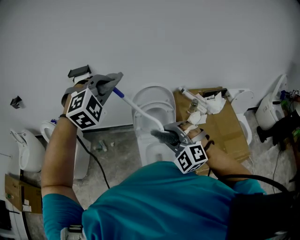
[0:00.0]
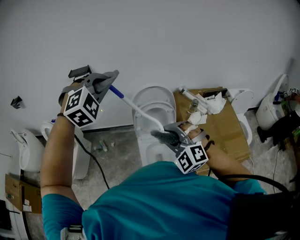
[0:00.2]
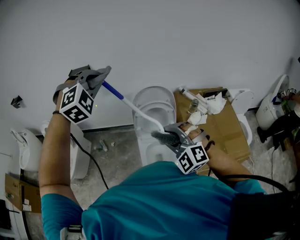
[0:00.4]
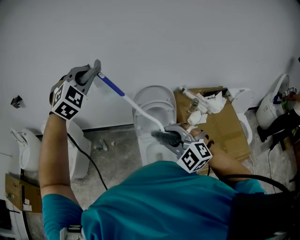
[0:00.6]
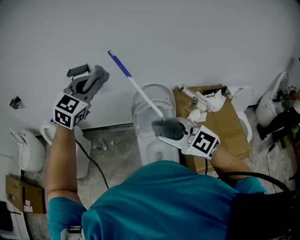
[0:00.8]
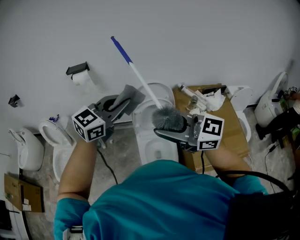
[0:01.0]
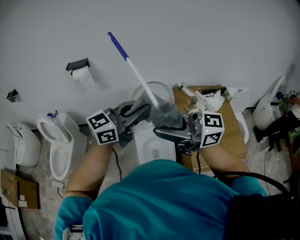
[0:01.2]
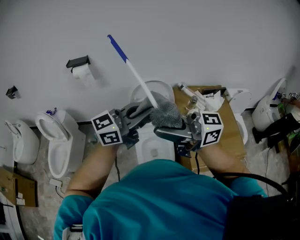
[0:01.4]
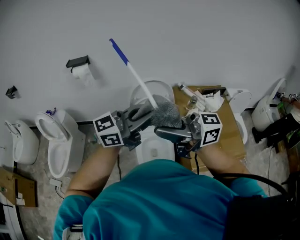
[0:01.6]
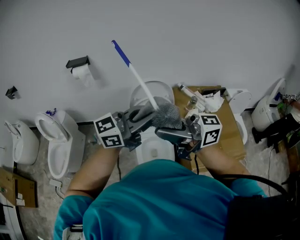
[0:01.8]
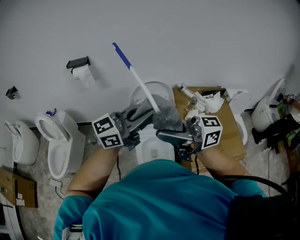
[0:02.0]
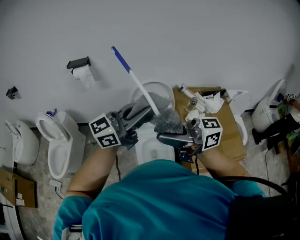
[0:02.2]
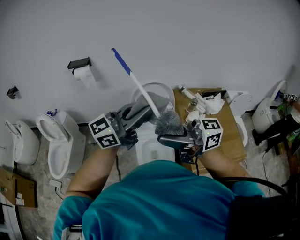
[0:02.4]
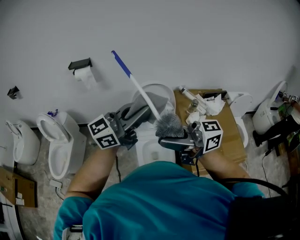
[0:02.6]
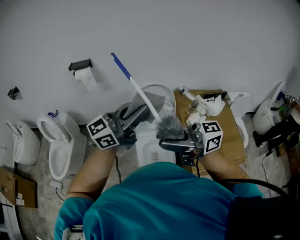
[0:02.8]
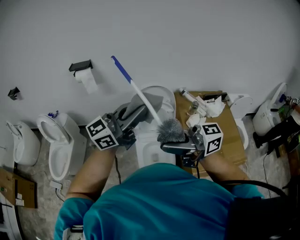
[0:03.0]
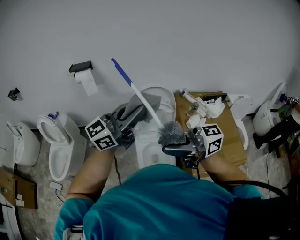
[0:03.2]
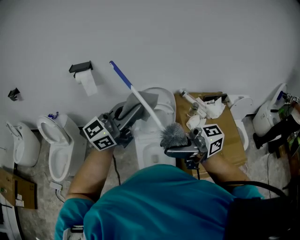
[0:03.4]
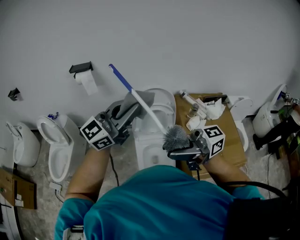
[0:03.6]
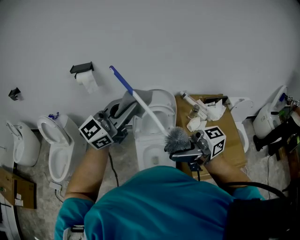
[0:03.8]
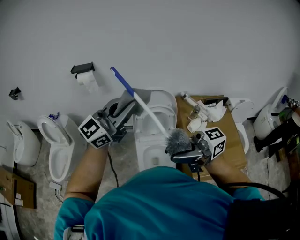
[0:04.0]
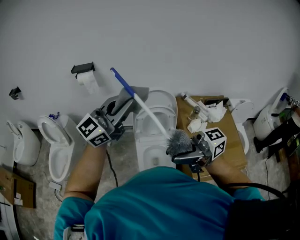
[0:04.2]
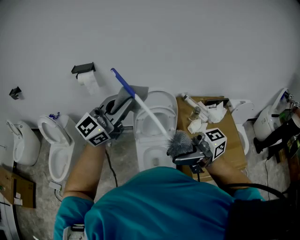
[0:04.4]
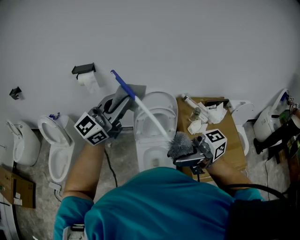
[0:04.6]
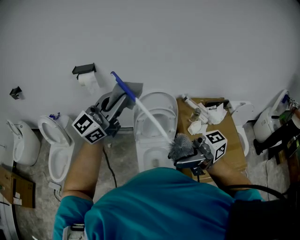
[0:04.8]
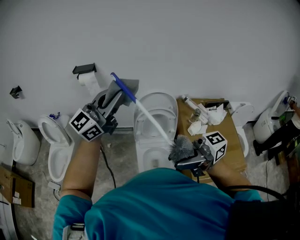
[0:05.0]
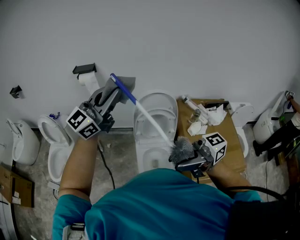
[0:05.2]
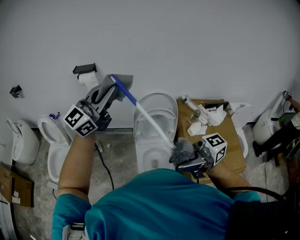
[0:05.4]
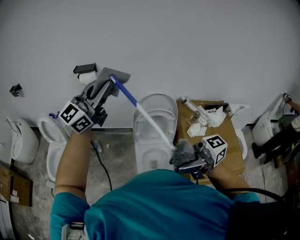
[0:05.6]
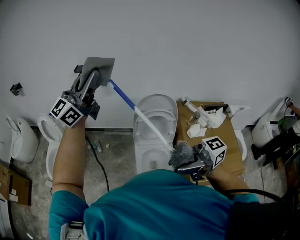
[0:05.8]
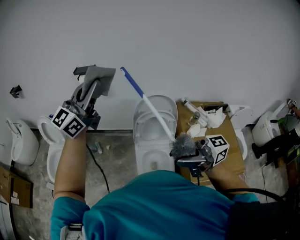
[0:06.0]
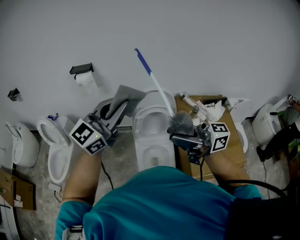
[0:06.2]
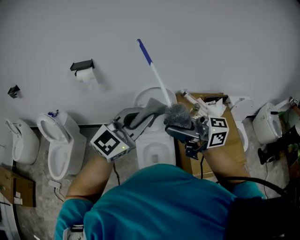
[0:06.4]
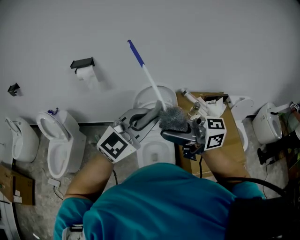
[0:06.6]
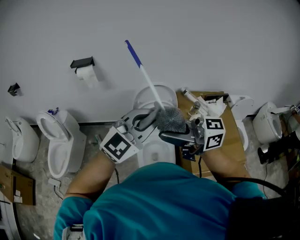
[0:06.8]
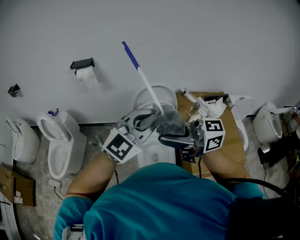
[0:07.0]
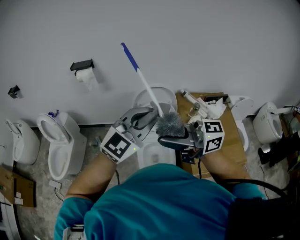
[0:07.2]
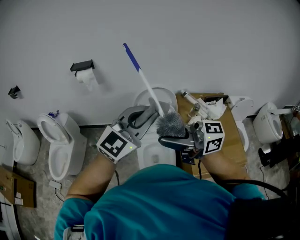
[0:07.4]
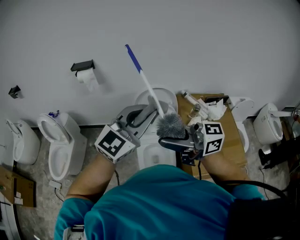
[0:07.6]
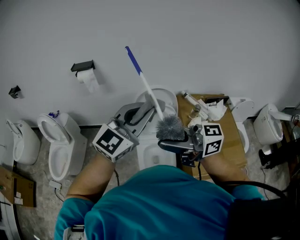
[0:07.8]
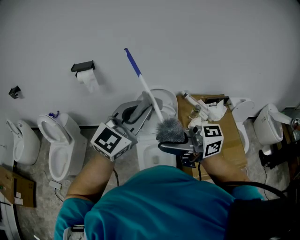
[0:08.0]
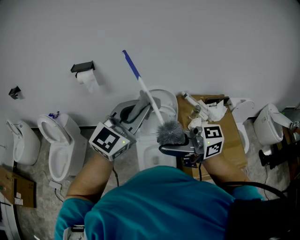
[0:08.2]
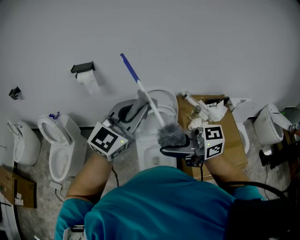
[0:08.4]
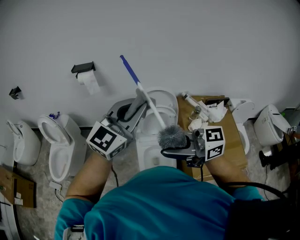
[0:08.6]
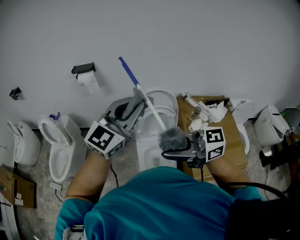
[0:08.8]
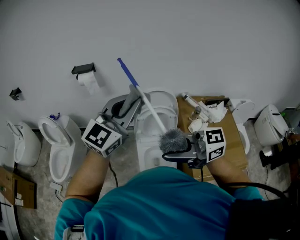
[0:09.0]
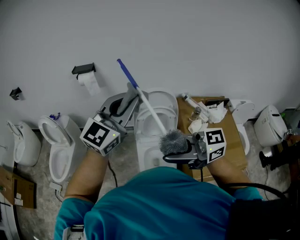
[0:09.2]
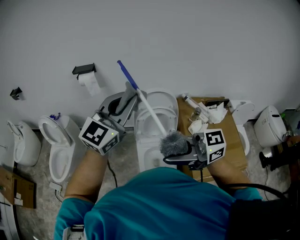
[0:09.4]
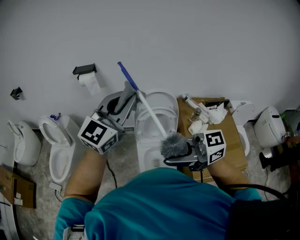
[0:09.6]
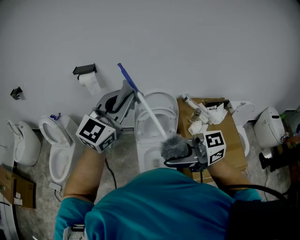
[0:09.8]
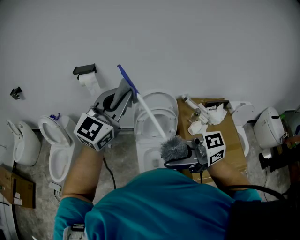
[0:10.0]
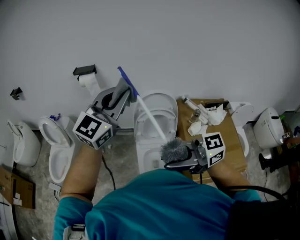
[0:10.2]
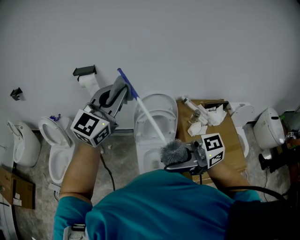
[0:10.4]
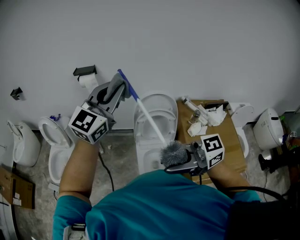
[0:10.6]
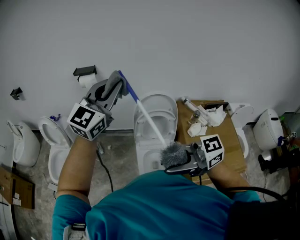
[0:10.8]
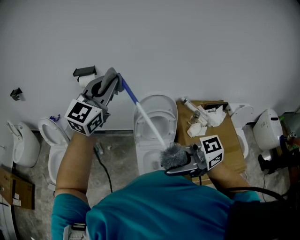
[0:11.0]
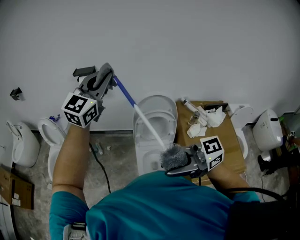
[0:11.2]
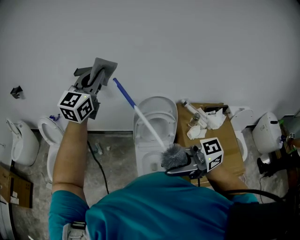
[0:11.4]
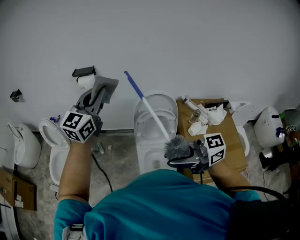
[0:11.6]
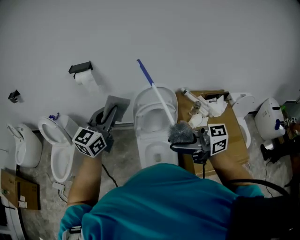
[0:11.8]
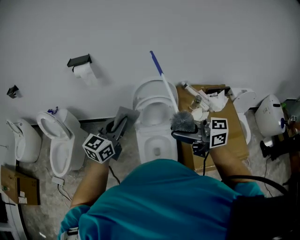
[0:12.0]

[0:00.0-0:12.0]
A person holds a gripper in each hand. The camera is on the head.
0:00.0 to 0:01.6: The left gripper moves approximately 20 cm, and points its fingers about 40 degrees further upward. Meanwhile the right gripper goes some 15 cm upward, and tips its fingers upward by about 40 degrees.
0:01.6 to 0:03.0: The left gripper changes place by some 5 cm.
0:03.0 to 0:04.4: The left gripper ends up about 10 cm from where it was.
0:04.4 to 0:06.0: The left gripper changes place by approximately 15 cm.
0:06.0 to 0:07.6: The left gripper shifts by some 25 cm, and turns by about 20 degrees.
0:07.6 to 0:09.0: The left gripper moves approximately 5 cm.
0:09.0 to 0:10.4: The left gripper ends up roughly 5 cm from where it was.
0:10.4 to 0:12.0: The right gripper shifts by some 10 cm, and changes its angle by roughly 20 degrees, while the left gripper moves downward, approximately 20 cm, and turns by some 30 degrees.

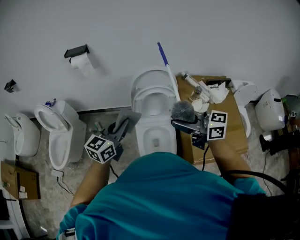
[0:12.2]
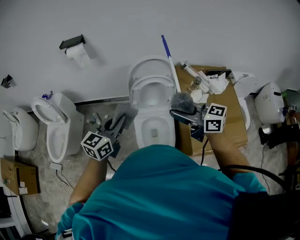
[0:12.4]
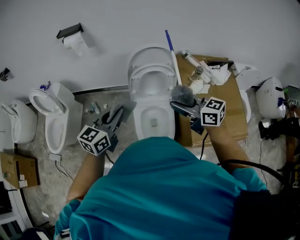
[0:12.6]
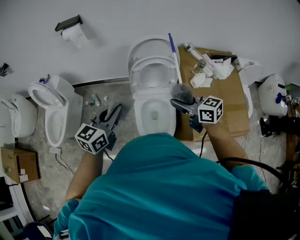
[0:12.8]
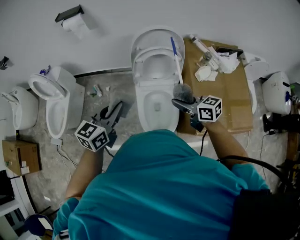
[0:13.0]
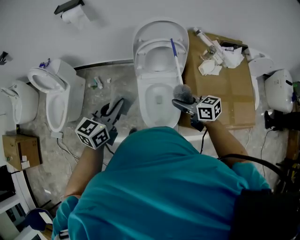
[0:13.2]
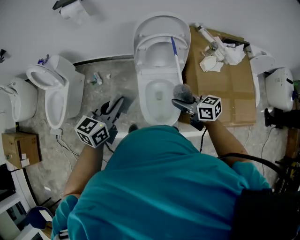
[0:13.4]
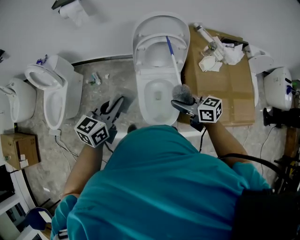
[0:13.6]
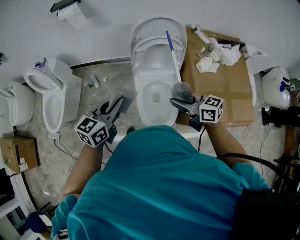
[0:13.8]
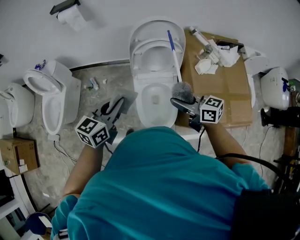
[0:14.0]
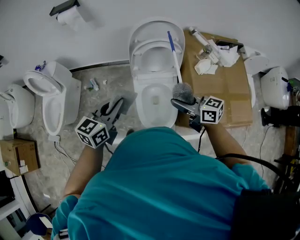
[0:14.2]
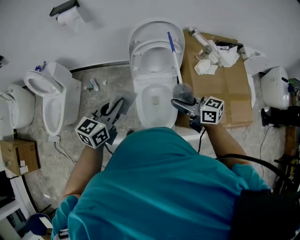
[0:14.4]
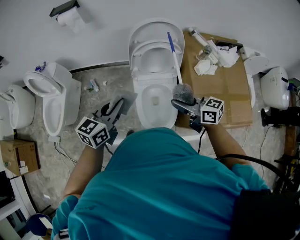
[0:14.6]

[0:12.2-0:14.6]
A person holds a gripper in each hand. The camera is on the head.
0:12.2 to 0:13.4: The right gripper travels downward by roughly 25 cm, and swivels roughly 30 degrees. Meanwhile the left gripper is displaced downward by some 10 cm.
0:13.4 to 0:14.6: The right gripper travels upward by some 5 cm.

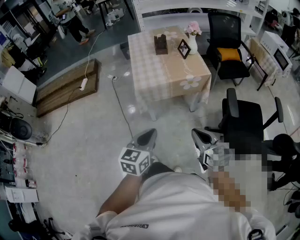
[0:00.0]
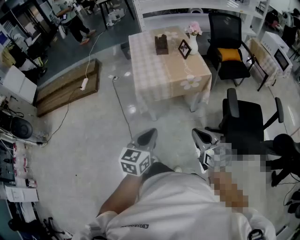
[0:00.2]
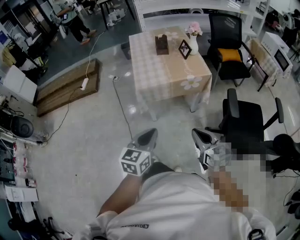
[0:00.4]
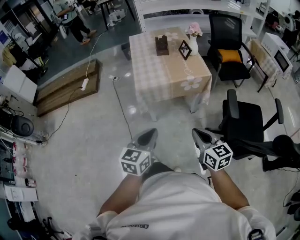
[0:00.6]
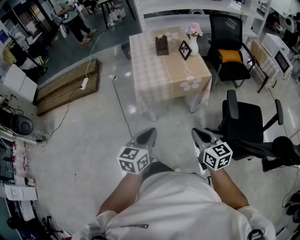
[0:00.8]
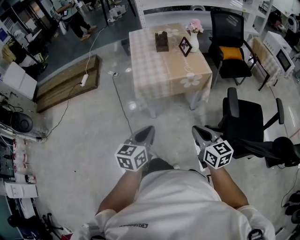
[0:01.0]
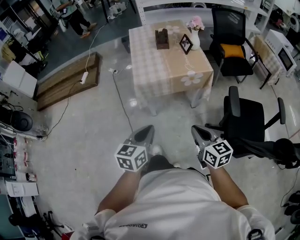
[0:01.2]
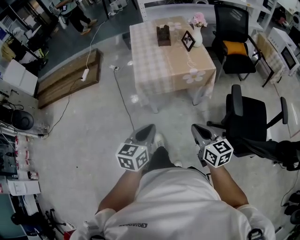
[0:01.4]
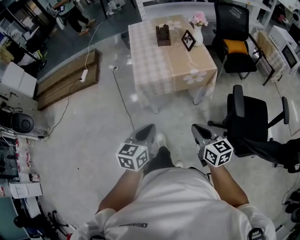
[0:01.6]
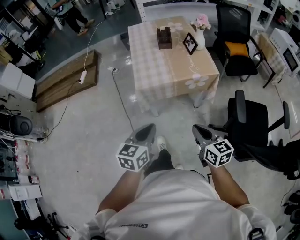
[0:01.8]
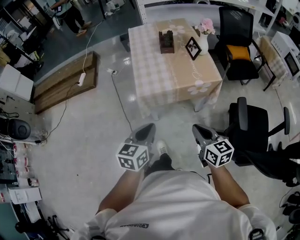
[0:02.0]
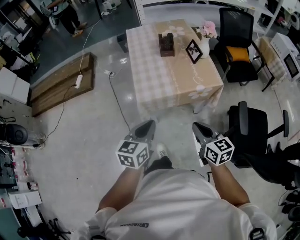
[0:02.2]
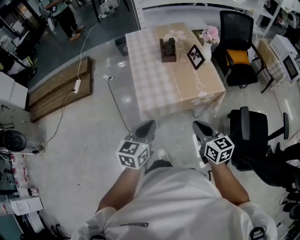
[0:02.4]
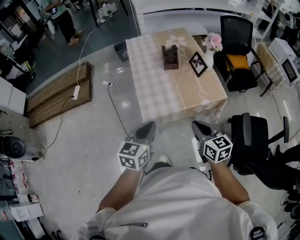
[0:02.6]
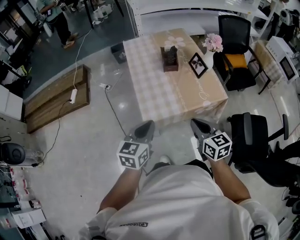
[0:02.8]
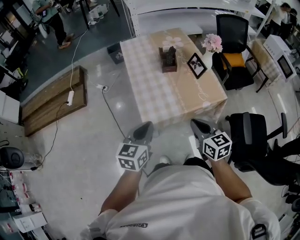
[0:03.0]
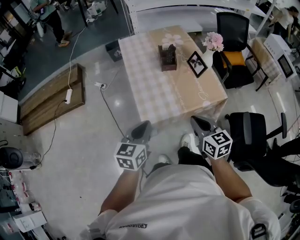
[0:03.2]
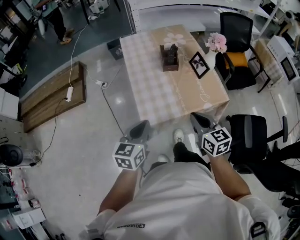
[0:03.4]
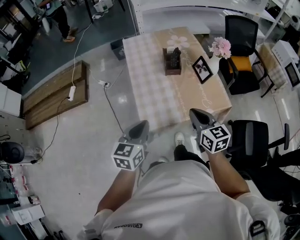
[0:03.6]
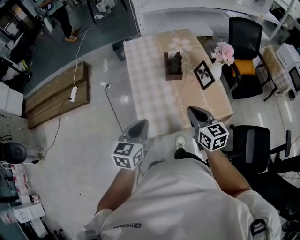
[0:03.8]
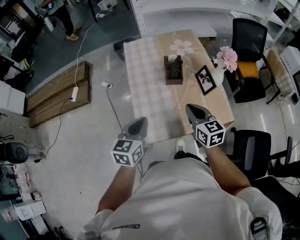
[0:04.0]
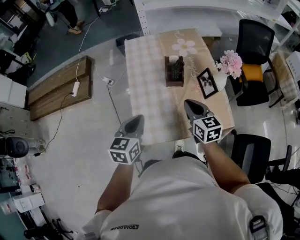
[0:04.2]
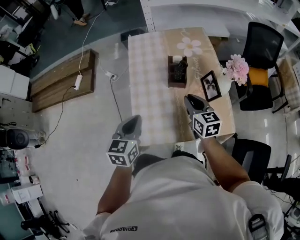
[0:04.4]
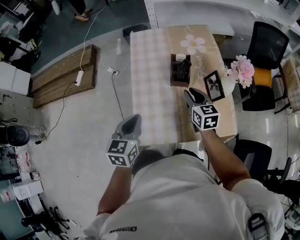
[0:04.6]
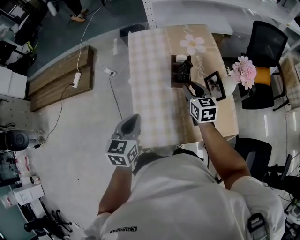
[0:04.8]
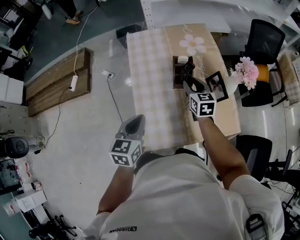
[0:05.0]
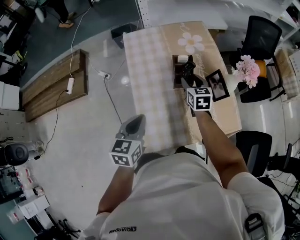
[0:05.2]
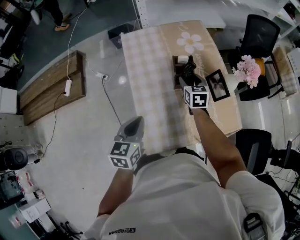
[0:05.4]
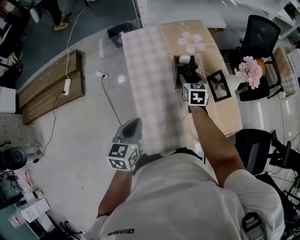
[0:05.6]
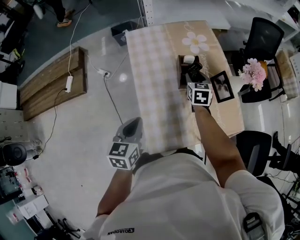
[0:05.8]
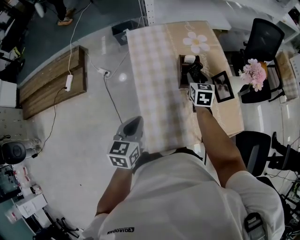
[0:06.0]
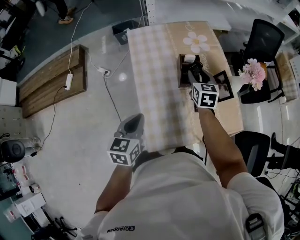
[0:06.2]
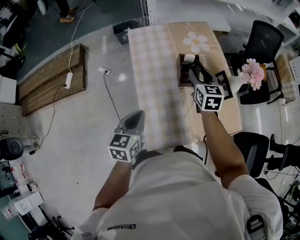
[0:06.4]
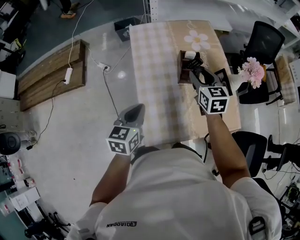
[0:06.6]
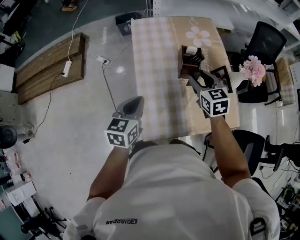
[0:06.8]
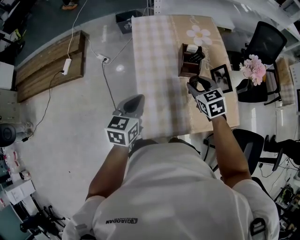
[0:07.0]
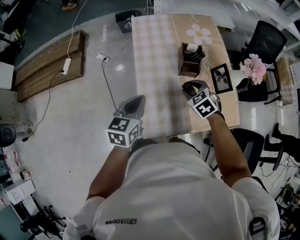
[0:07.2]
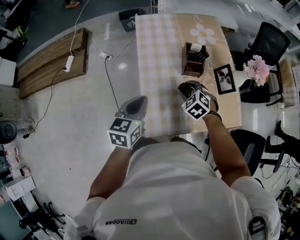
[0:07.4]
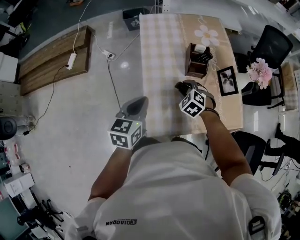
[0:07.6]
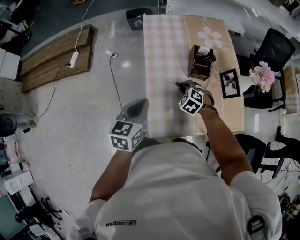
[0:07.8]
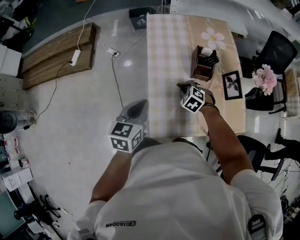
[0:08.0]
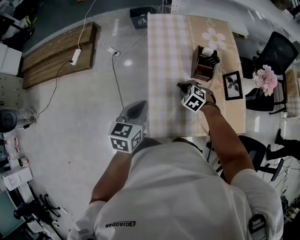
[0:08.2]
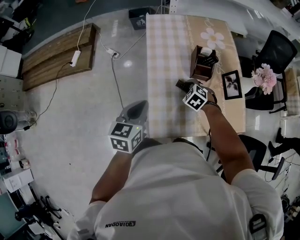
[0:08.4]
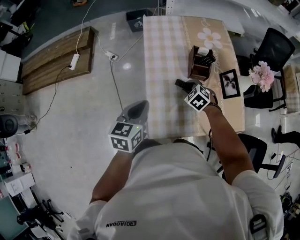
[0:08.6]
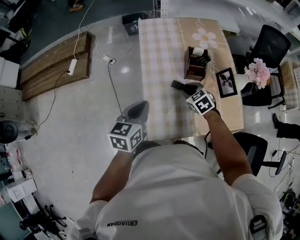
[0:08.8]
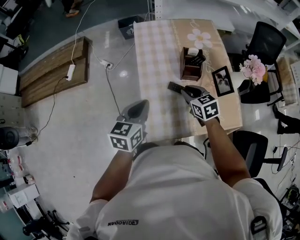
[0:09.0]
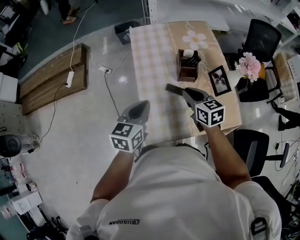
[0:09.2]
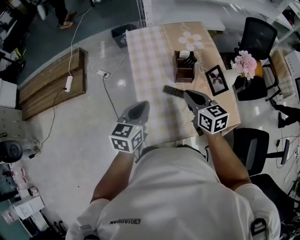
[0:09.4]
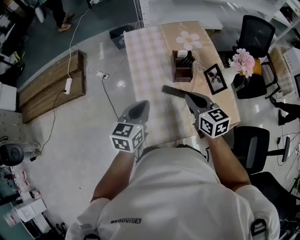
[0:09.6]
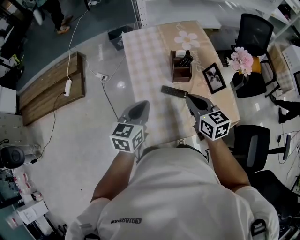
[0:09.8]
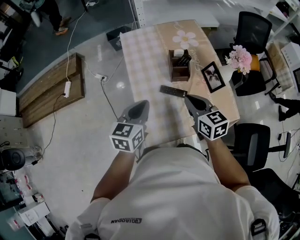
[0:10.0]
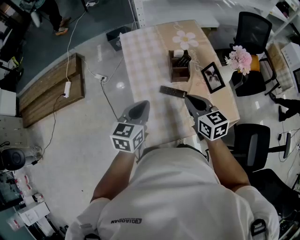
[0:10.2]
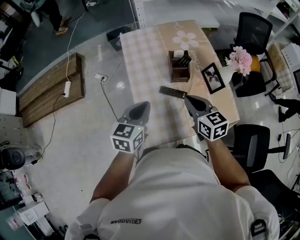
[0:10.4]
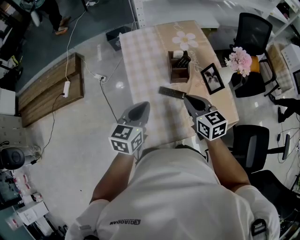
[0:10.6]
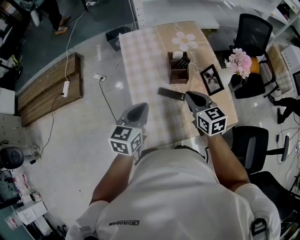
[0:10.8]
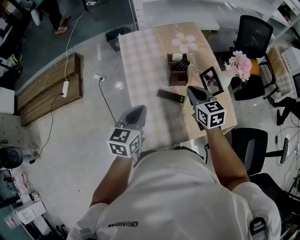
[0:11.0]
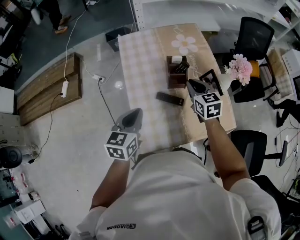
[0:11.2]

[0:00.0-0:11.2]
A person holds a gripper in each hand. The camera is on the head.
0:00.0 to 0:01.6: The grippers both shift forward by some 5 cm.
0:01.6 to 0:03.2: The grippers both shift forward by some 30 cm.
0:03.2 to 0:04.8: The right gripper heads forward, covering some 35 cm, and opens. The left gripper goes some 20 cm forward.
0:04.8 to 0:06.4: The right gripper travels forward by roughly 5 cm. Meanwhile the left gripper shifts approximately 5 cm to the left.
0:06.4 to 0:08.0: The right gripper moves downward, to the left and backward, roughly 25 cm, angles its fingers downward, by approximately 40 degrees, and closes its fingers.
0:08.0 to 0:09.6: The right gripper heads upward, covering about 20 cm, points its fingers some 40 degrees further upward, and closes; the left gripper shifts roughly 5 cm to the right.
0:09.6 to 0:11.2: The right gripper goes roughly 10 cm forward and to the right.
